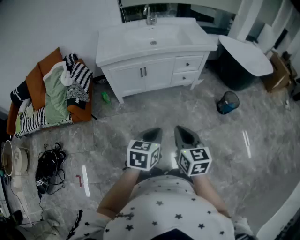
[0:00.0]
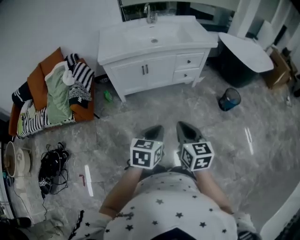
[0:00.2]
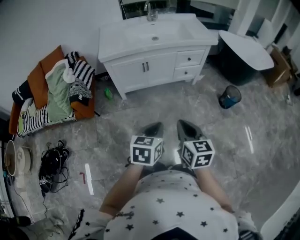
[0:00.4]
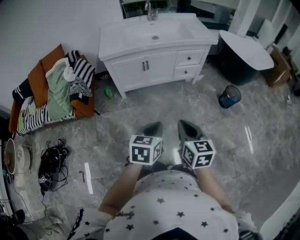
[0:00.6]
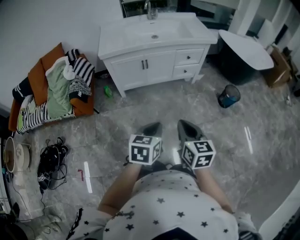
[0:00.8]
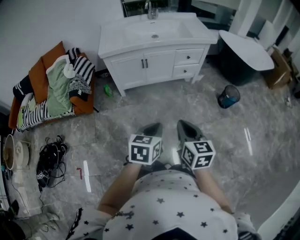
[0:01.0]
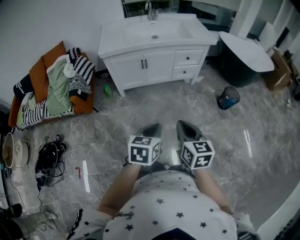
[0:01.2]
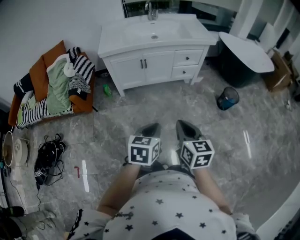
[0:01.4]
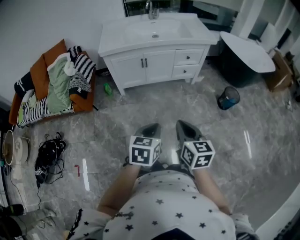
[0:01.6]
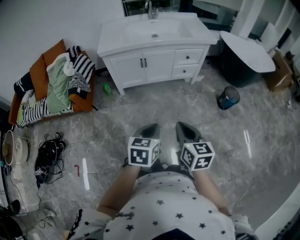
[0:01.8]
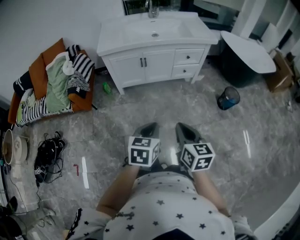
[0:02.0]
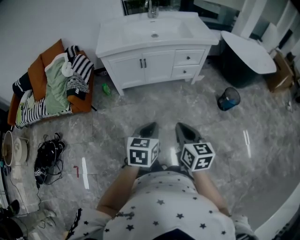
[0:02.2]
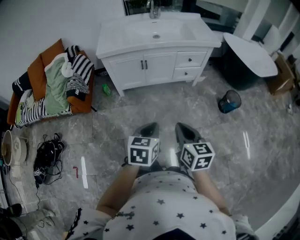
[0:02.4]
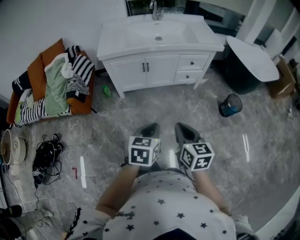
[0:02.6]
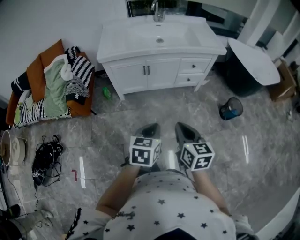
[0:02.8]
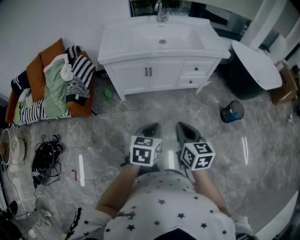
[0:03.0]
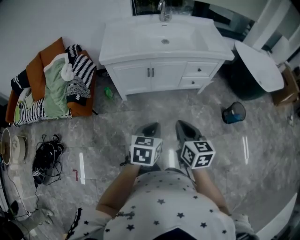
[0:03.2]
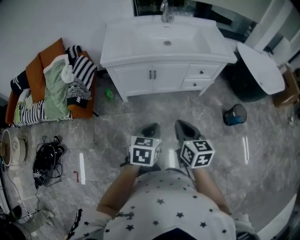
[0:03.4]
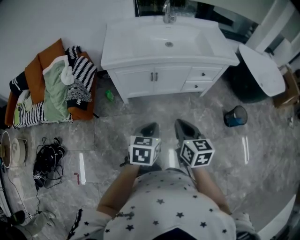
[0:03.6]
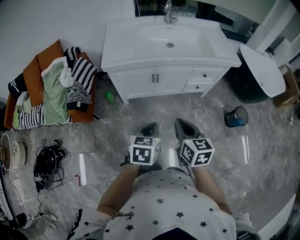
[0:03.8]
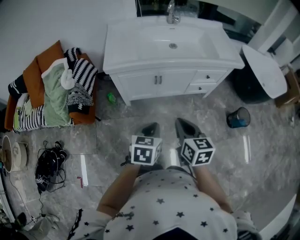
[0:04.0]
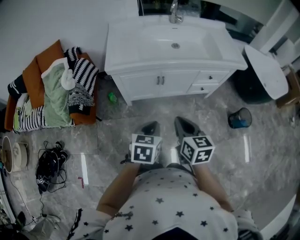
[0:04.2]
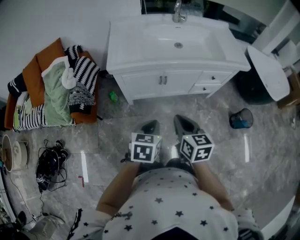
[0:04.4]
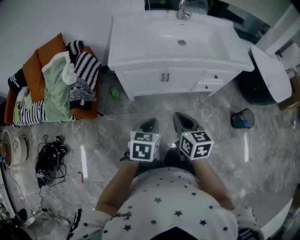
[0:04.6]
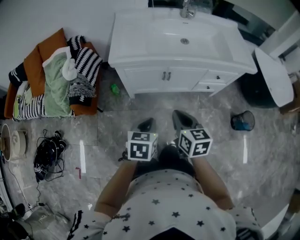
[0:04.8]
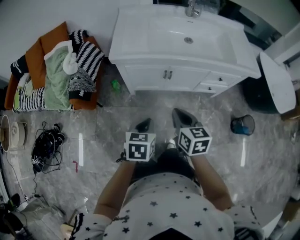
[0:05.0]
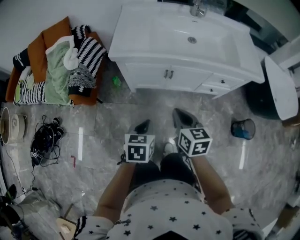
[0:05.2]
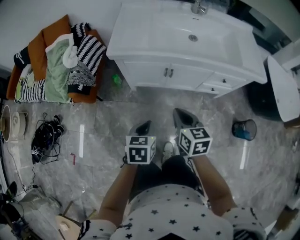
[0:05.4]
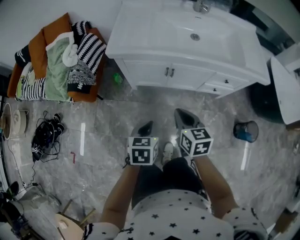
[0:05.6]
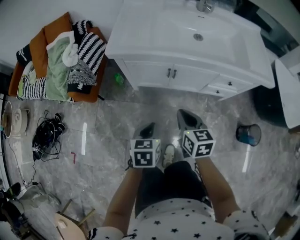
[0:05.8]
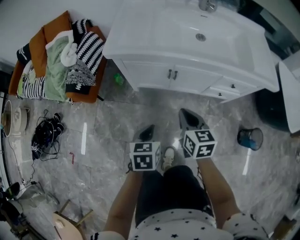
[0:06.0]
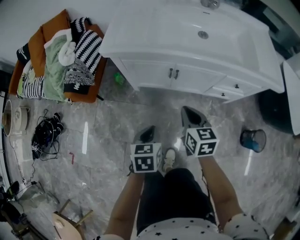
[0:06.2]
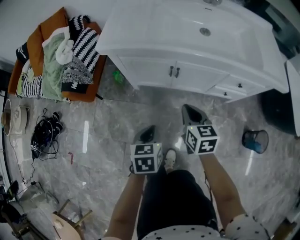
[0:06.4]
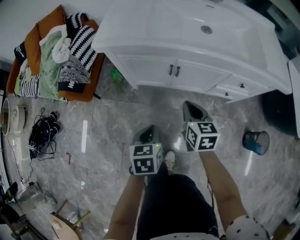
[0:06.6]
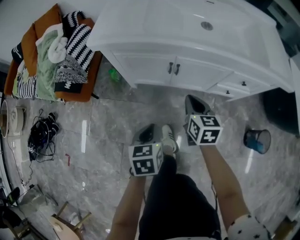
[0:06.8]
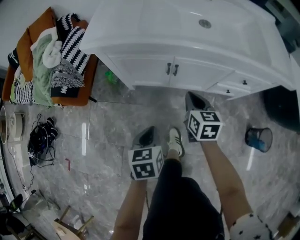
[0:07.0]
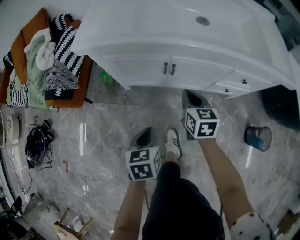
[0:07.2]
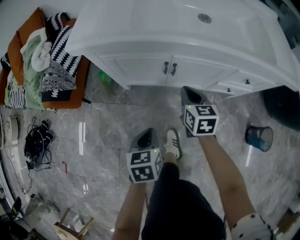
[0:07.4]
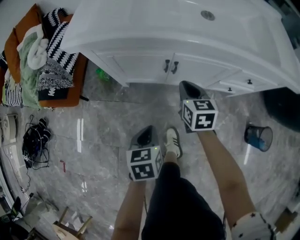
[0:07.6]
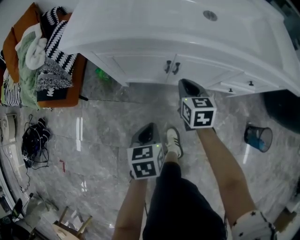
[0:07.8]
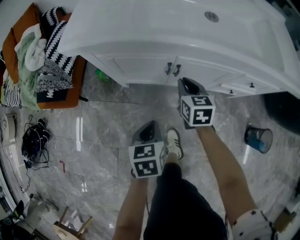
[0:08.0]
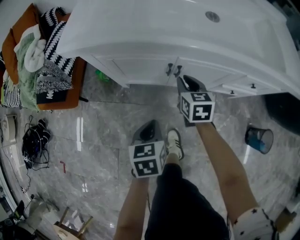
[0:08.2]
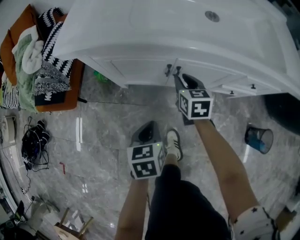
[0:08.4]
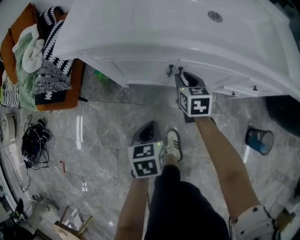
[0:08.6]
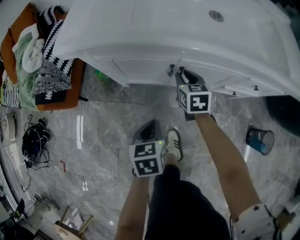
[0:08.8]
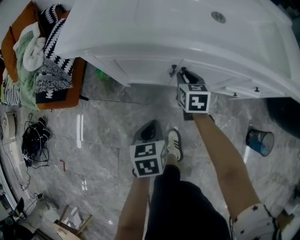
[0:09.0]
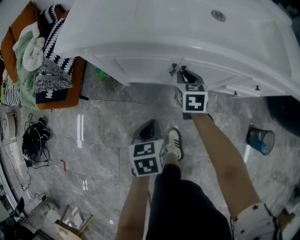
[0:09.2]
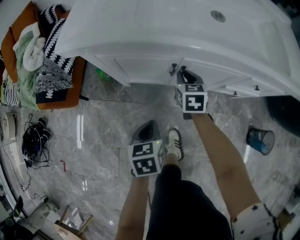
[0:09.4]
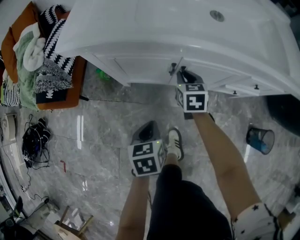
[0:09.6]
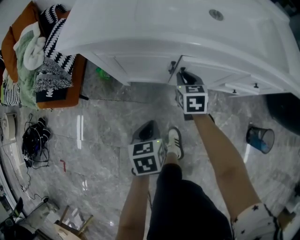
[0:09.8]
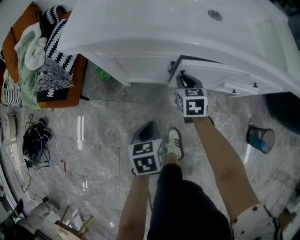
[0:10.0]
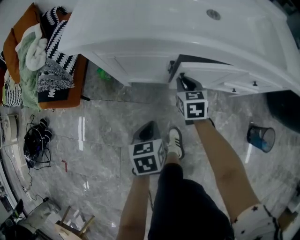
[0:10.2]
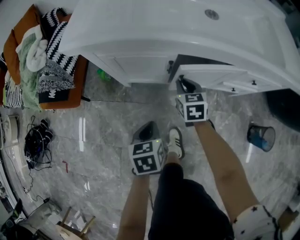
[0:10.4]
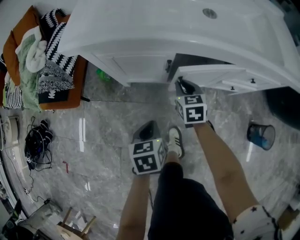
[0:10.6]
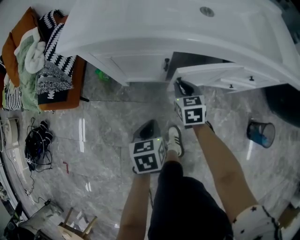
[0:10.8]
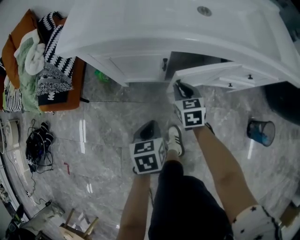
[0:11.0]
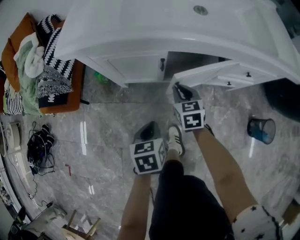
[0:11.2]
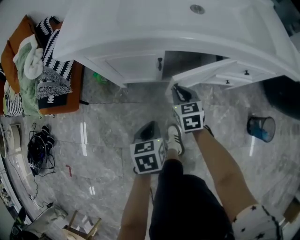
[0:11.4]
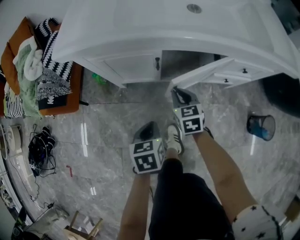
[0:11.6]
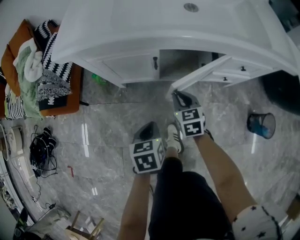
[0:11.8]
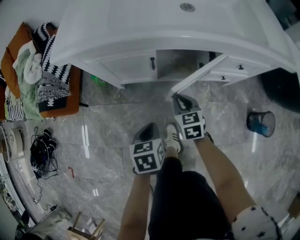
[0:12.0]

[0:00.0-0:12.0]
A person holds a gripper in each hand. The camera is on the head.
0:00.0 to 0:01.6: The left gripper heads backward, covering approximately 5 cm; the right gripper shifts by some 5 cm.
0:01.6 to 0:03.0: The grippers both shift forward by approximately 15 cm.
0:03.0 to 0:04.4: The two grippers go about 20 cm forward and to the left.
0:04.4 to 0:06.0: The left gripper goes approximately 10 cm downward, and swivels roughly 20 degrees. Meanwhile the right gripper is displaced downward, forward and to the right by some 15 cm.
0:06.0 to 0:07.6: The two grippers go roughly 20 cm downward and forward.
0:07.6 to 0:09.0: The left gripper shifts some 5 cm forward. The right gripper moves forward and downward, about 10 cm, and opens.
0:09.0 to 0:10.4: The right gripper moves backward, approximately 5 cm.
0:10.4 to 0:12.0: The right gripper heads backward, covering approximately 10 cm; the left gripper ends up some 5 cm from where it was.

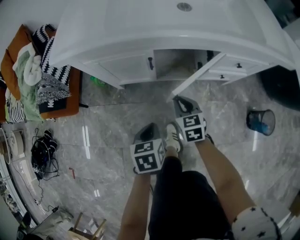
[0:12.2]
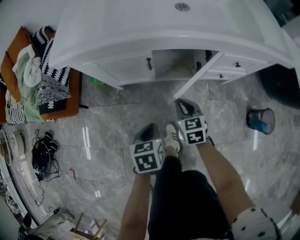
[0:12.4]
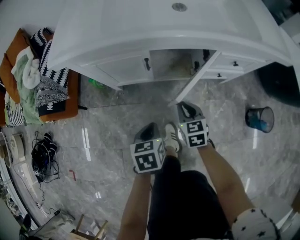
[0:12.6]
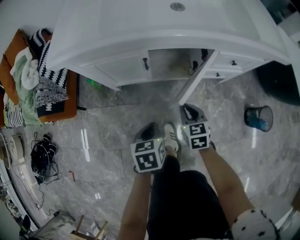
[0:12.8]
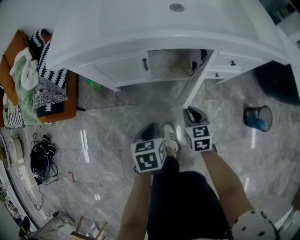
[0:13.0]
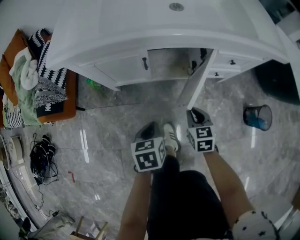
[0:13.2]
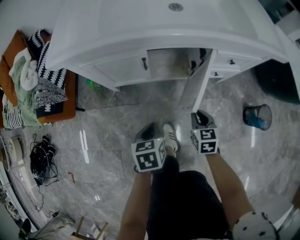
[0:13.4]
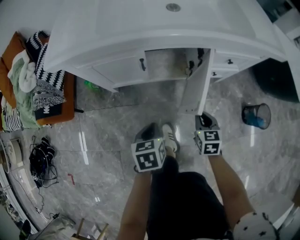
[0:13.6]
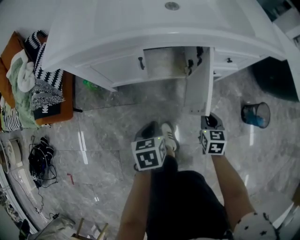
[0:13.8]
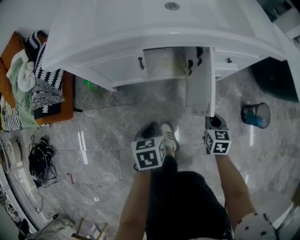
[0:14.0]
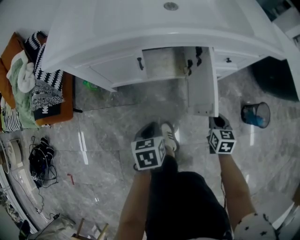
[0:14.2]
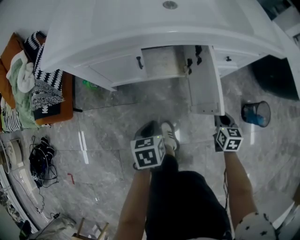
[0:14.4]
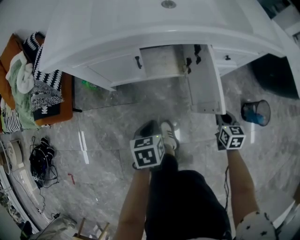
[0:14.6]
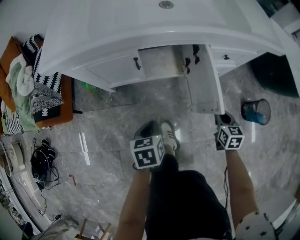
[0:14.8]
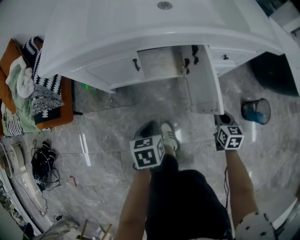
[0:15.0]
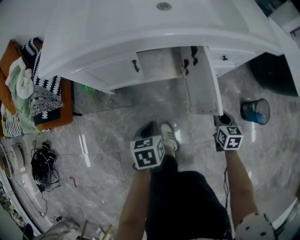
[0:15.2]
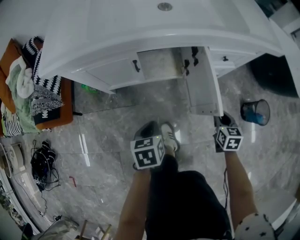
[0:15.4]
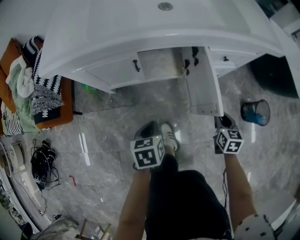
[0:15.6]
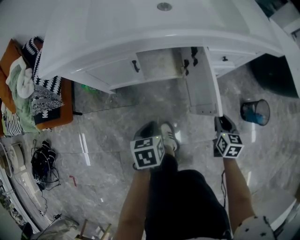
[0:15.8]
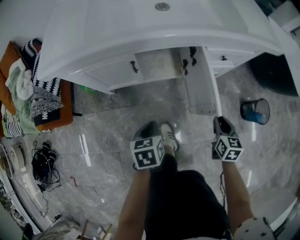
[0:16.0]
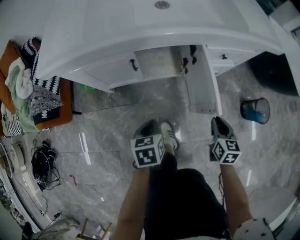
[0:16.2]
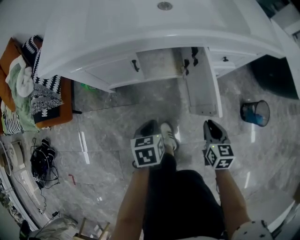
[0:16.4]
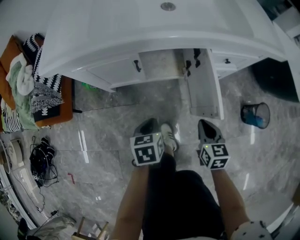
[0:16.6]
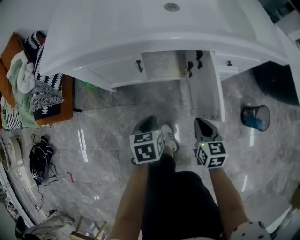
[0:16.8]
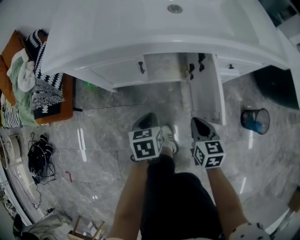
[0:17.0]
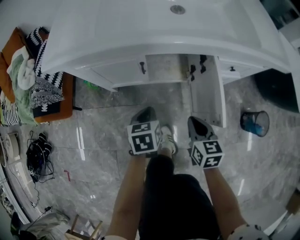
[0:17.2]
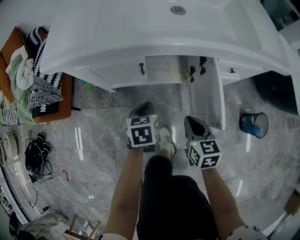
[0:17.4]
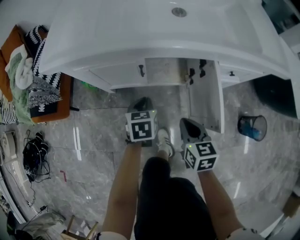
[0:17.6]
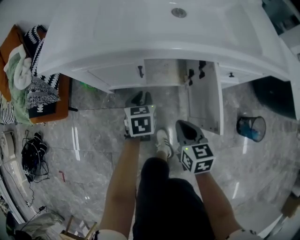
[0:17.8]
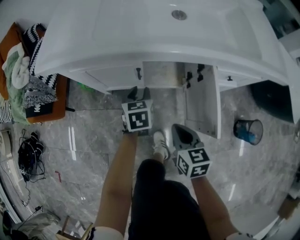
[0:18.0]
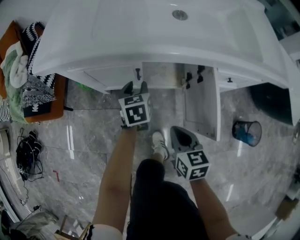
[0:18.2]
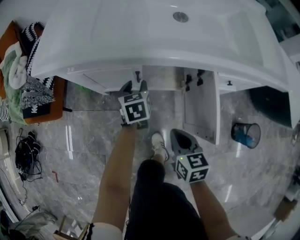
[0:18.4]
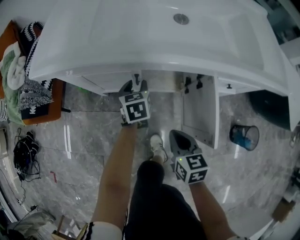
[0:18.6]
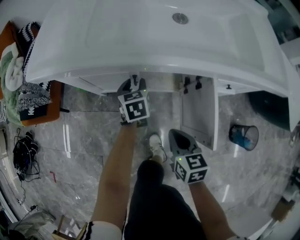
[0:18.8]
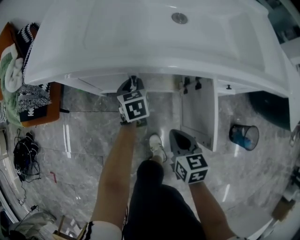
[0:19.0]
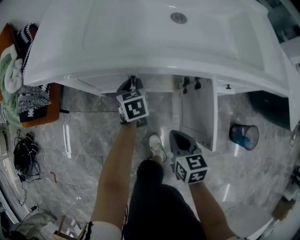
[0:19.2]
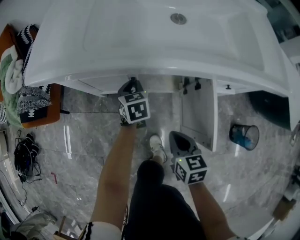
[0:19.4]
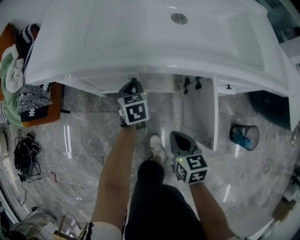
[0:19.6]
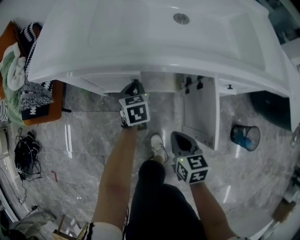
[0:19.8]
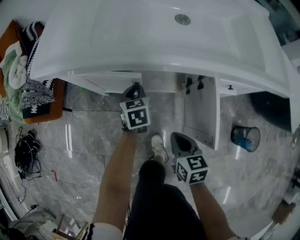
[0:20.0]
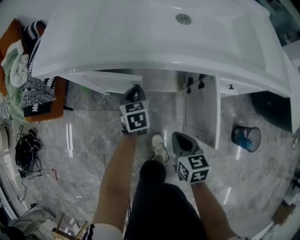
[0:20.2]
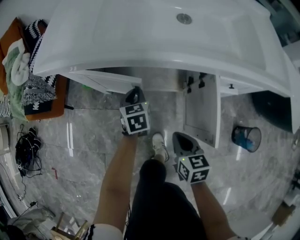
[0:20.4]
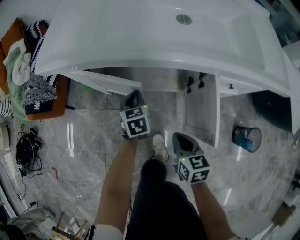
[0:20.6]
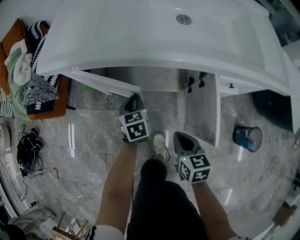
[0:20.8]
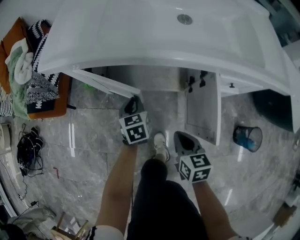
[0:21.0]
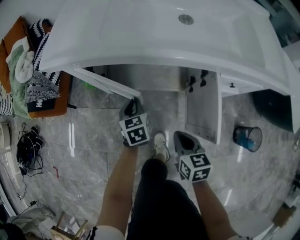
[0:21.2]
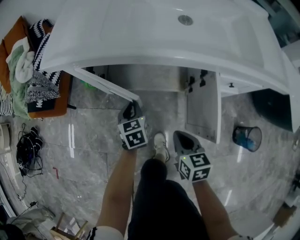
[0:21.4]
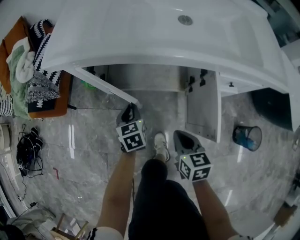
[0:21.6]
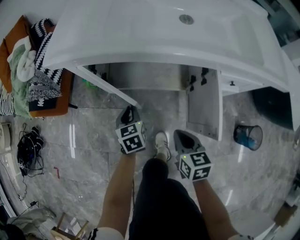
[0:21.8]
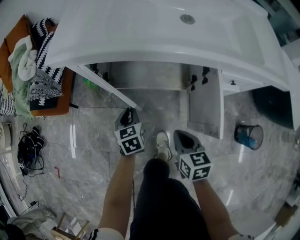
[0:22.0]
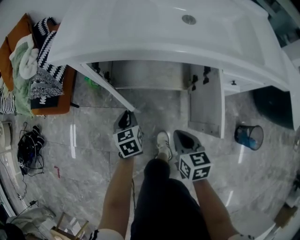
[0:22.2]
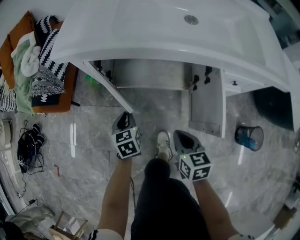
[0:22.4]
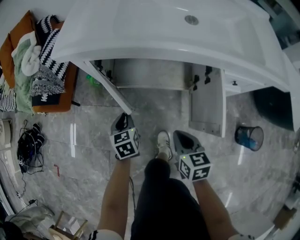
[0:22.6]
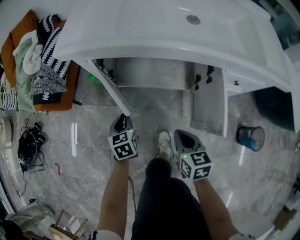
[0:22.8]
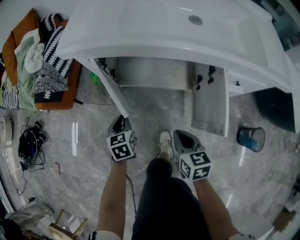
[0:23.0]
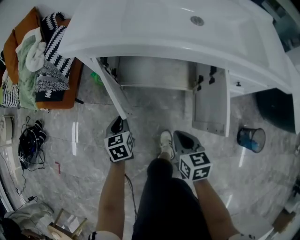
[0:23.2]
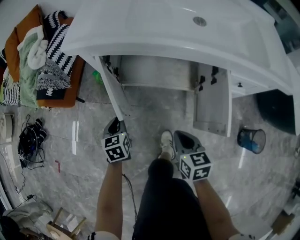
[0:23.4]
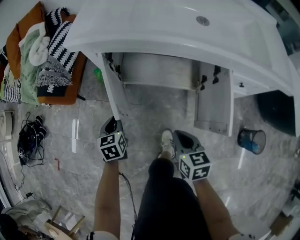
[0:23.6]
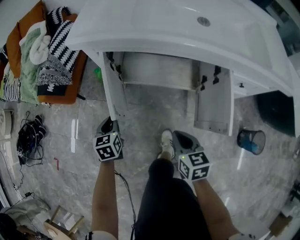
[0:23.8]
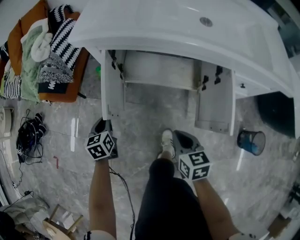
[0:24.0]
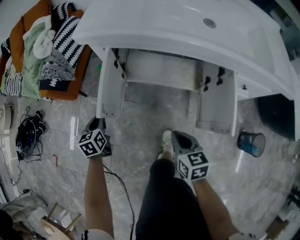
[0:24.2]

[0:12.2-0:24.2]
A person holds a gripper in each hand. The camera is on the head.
0:12.2 to 0:13.8: The right gripper heads to the right and backward, covering roughly 15 cm.
0:13.8 to 0:15.2: The right gripper heads to the right, covering about 10 cm.
0:15.2 to 0:16.6: The right gripper travels to the left and upward by some 10 cm.
0:16.6 to 0:18.2: The right gripper goes some 10 cm to the left and forward, while the left gripper moves forward, some 20 cm, and opens.
0:18.2 to 0:19.8: The left gripper closes up.
0:19.8 to 0:21.2: The left gripper moves backward and to the left, roughly 10 cm.
0:21.2 to 0:22.6: The left gripper is displaced to the left and backward by roughly 10 cm.
0:22.6 to 0:24.2: The left gripper moves to the left, some 20 cm. The right gripper moves to the left, approximately 5 cm.
